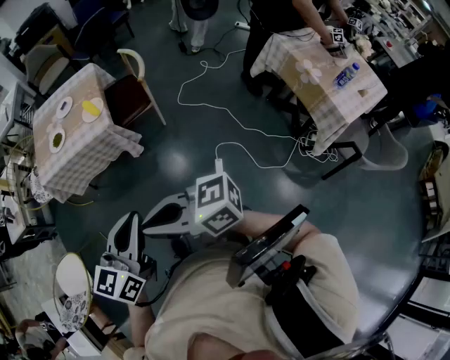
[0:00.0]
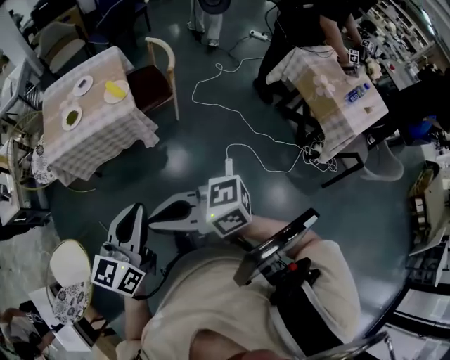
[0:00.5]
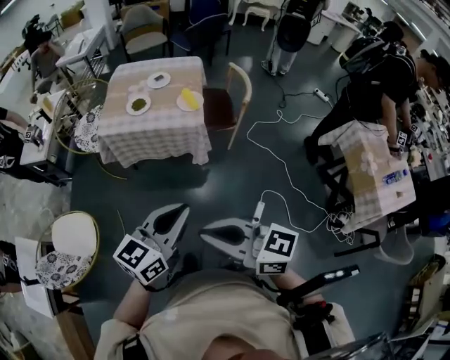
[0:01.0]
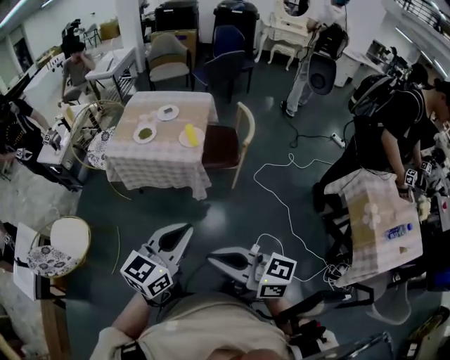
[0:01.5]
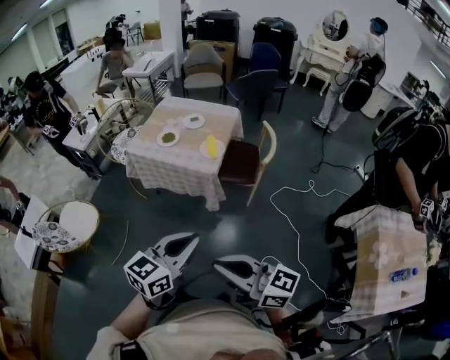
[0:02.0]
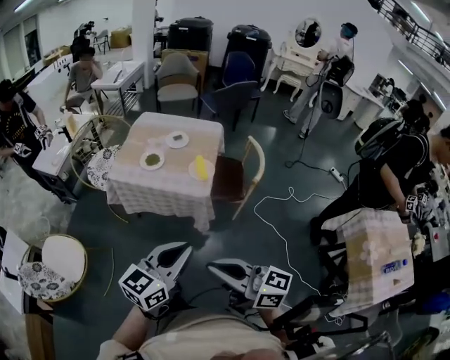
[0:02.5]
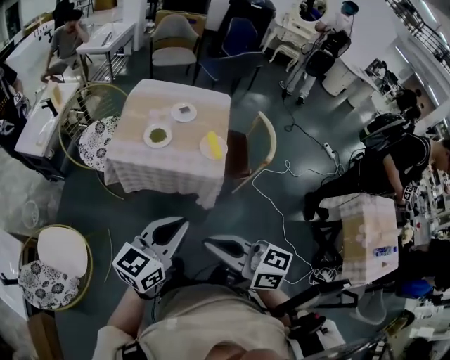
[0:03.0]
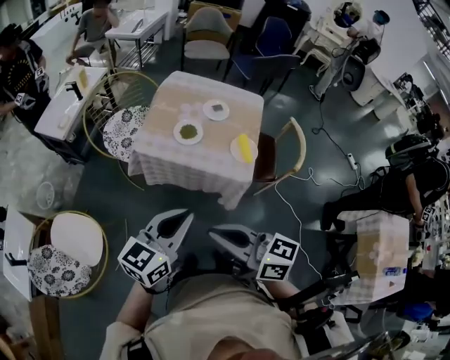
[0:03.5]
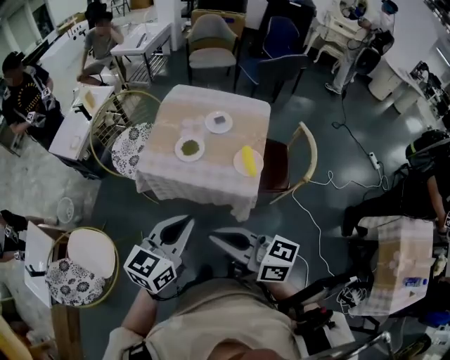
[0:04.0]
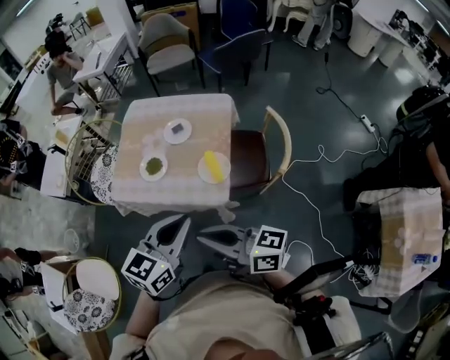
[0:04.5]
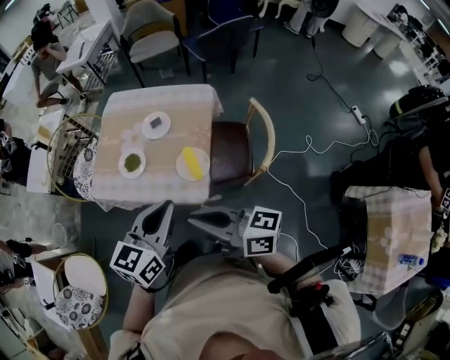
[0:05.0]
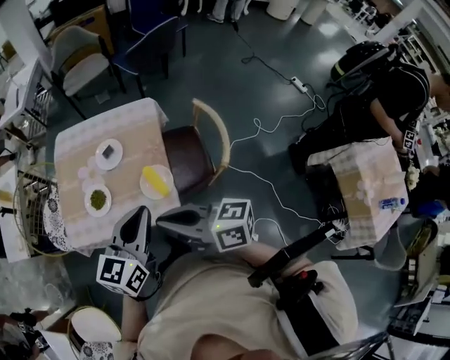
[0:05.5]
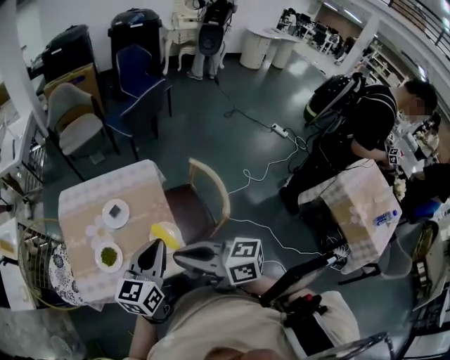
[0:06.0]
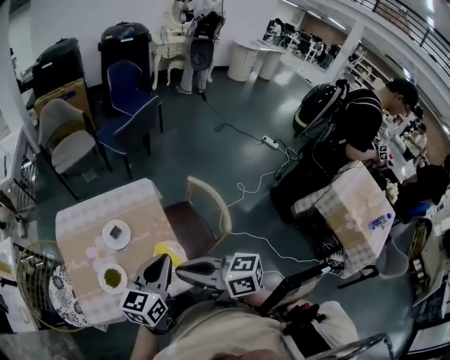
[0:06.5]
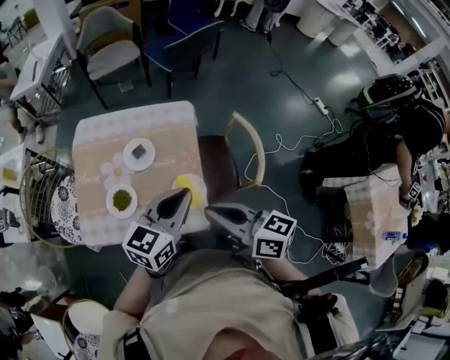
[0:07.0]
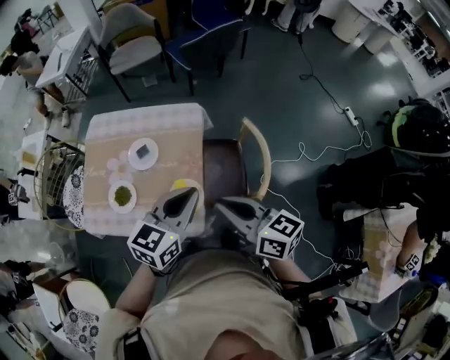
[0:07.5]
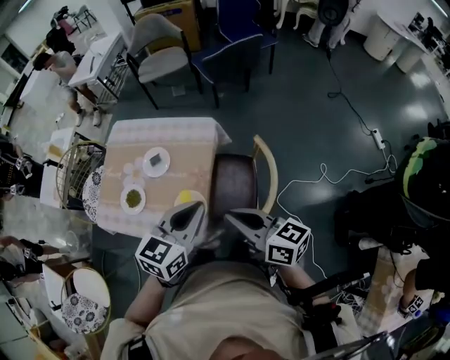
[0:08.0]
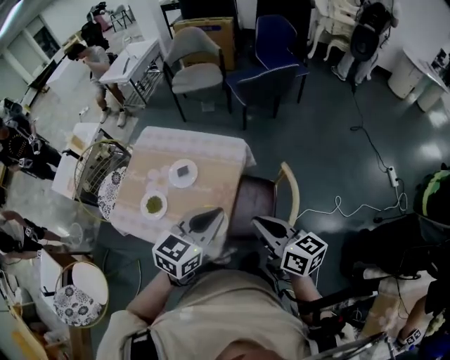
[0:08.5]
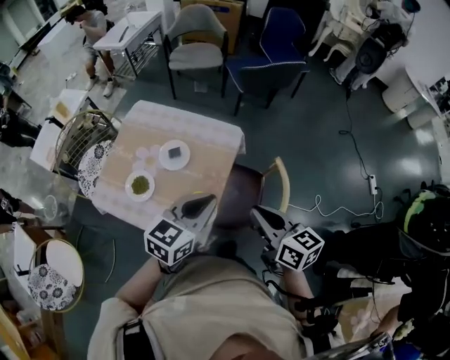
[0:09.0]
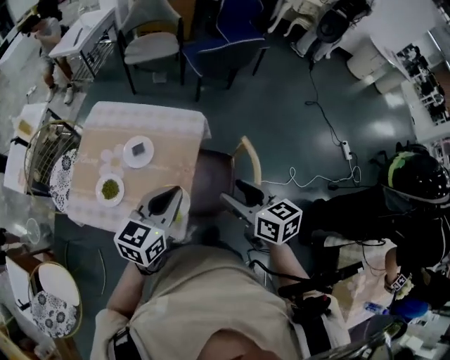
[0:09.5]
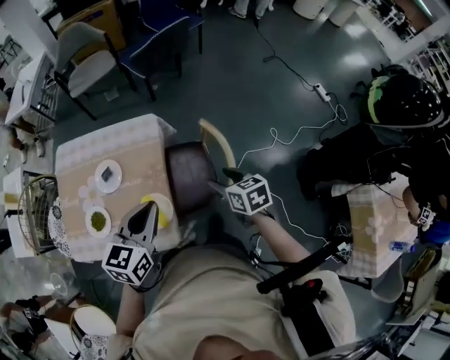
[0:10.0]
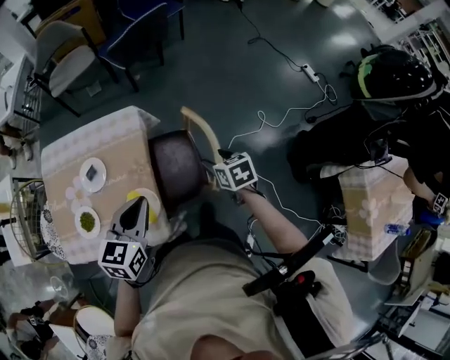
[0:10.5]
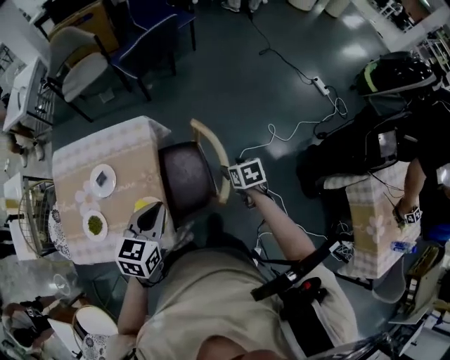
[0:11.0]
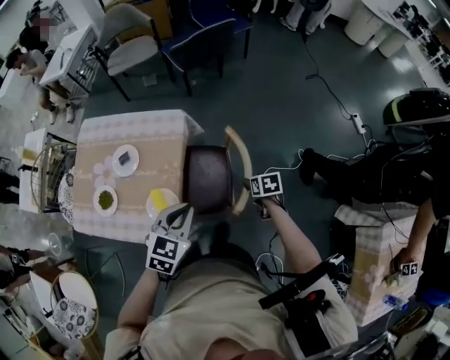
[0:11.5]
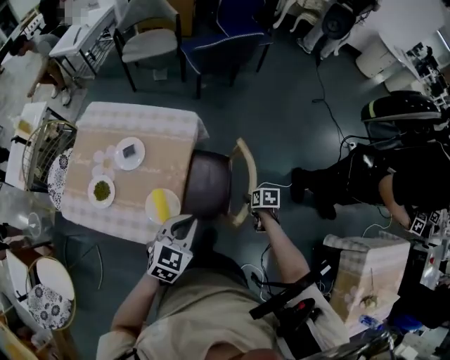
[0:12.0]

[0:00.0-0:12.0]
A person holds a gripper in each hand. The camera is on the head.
0:00.0 to 0:02.0: The left gripper moves forward, approximately 10 cm, and reaches some 15 cm to the left, then returns. The right gripper goes approximately 5 cm forward, and reaches some 15 cm to the left, then returns.
0:02.0 to 0:04.0: The two grippers go approximately 40 cm forward and to the left.
0:04.0 to 0:06.0: The right gripper moves forward and to the right, approximately 30 cm, and rotates approximately 20 degrees, while the left gripper shifts some 30 cm to the right and forward.
0:06.0 to 0:08.0: The grippers both shift to the right and forward by about 20 cm.
0:08.0 to 0:10.0: The right gripper travels downward, to the right and forward by approximately 20 cm, tips its fingers downward by about 40 degrees, and opens up.
0:10.0 to 0:12.0: The right gripper heads downward and to the right, covering some 25 cm, and changes its angle by about 30 degrees; the left gripper heads downward and to the right, covering approximately 10 cm.

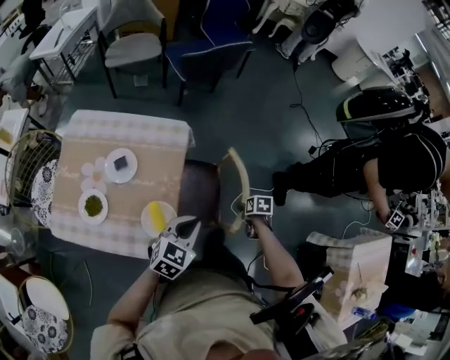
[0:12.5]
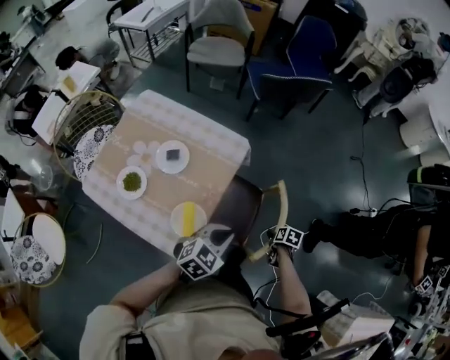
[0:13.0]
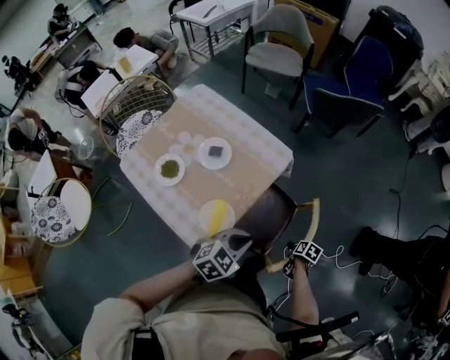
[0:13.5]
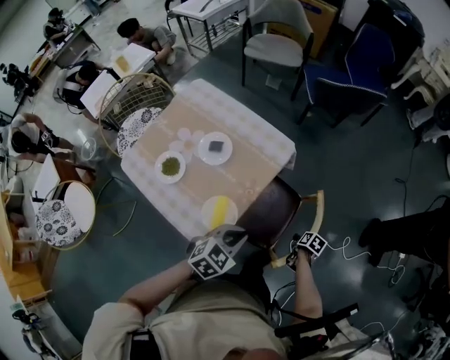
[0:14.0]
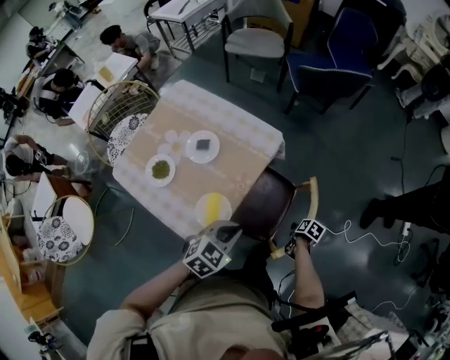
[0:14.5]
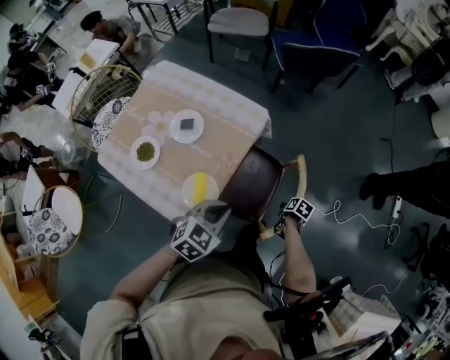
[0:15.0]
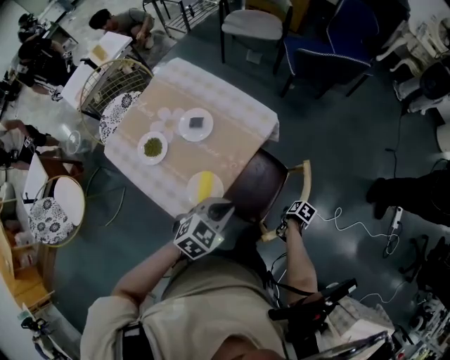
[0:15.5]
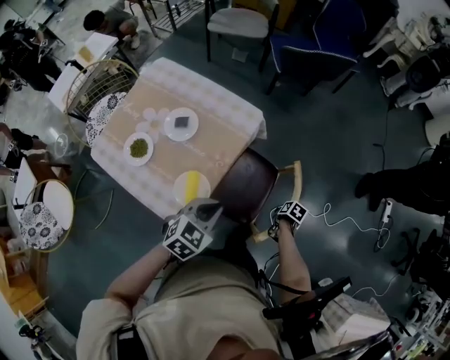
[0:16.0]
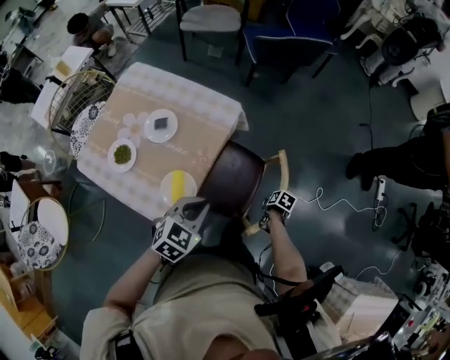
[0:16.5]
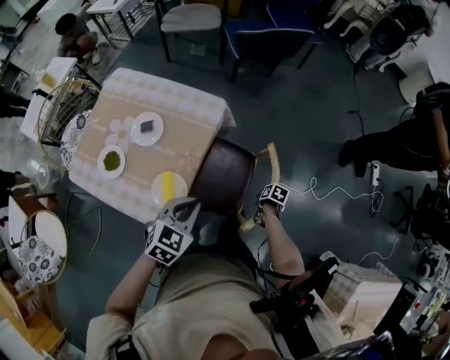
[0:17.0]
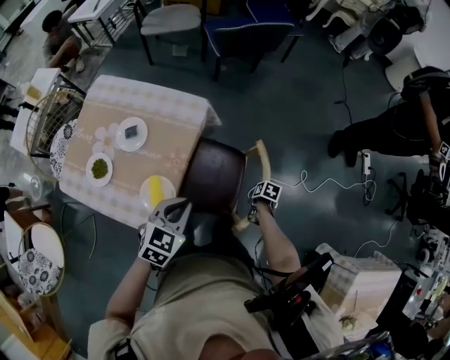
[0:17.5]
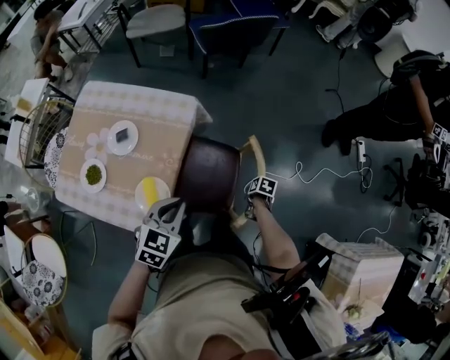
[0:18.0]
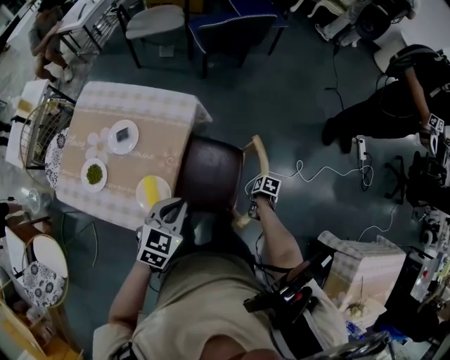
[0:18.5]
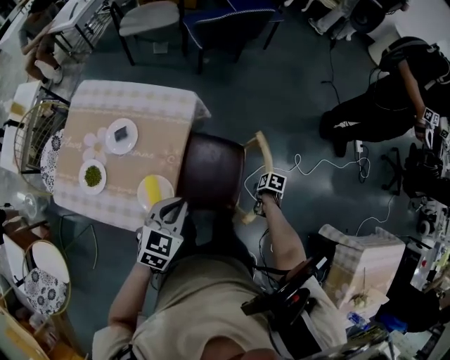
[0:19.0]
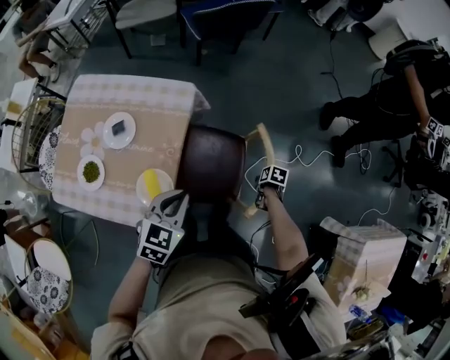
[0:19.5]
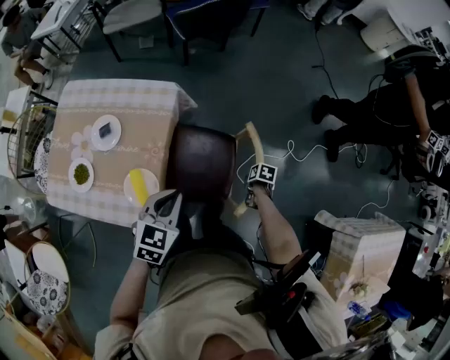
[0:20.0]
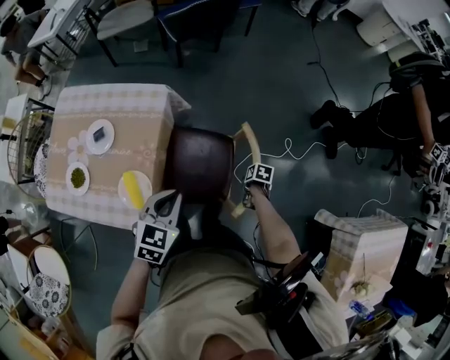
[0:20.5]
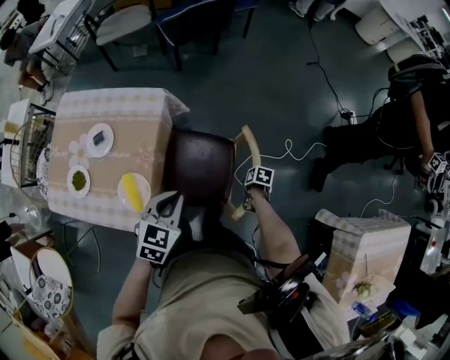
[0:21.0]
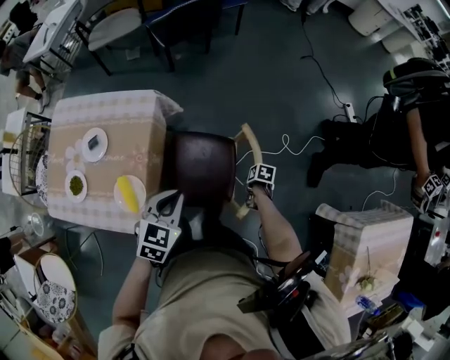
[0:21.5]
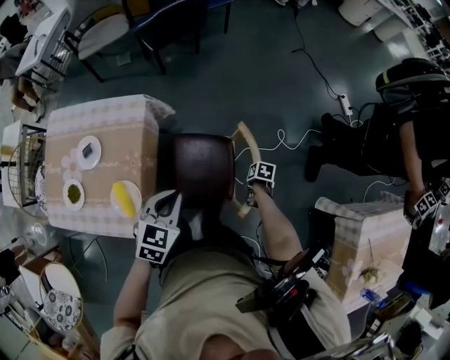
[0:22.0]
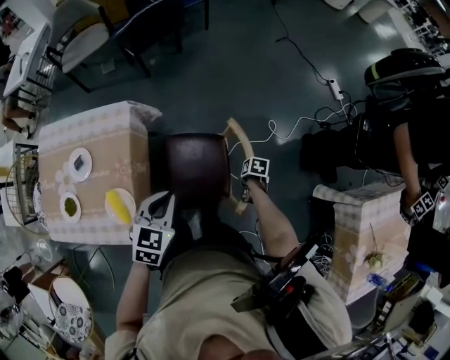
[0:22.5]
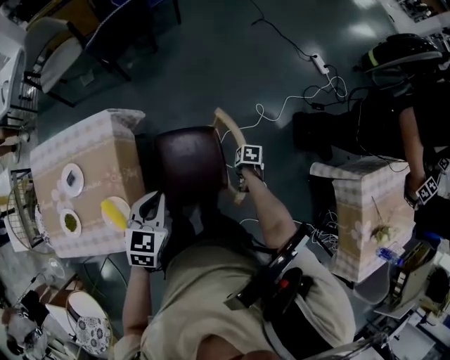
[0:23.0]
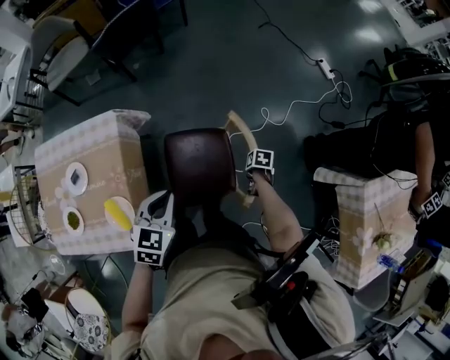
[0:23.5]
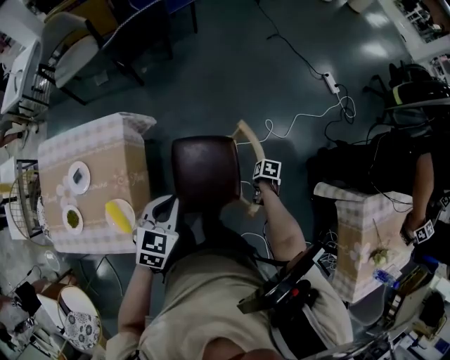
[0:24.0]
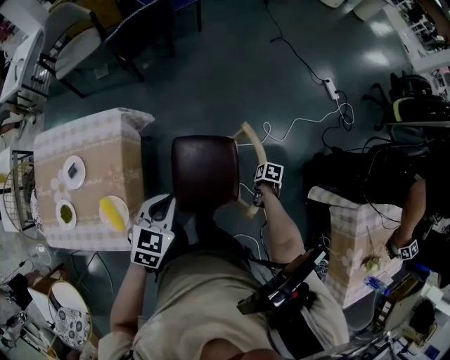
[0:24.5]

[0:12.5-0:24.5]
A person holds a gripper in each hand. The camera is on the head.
0:12.5 to 0:14.5: The right gripper is displaced downward by some 10 cm, and closes its fingers.
0:14.5 to 0:16.5: The grippers make only small movements.
0:16.5 to 0:18.5: There are only small adjustments of the grippers.
0:18.5 to 0:20.5: The right gripper changes place by about 5 cm, while the left gripper ends up roughly 5 cm from where it was.
0:20.5 to 0:22.5: The right gripper moves approximately 10 cm, while the left gripper ends up roughly 5 cm from where it was.
0:22.5 to 0:24.5: The right gripper changes place by approximately 10 cm.

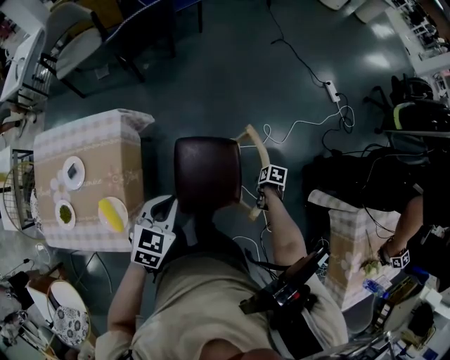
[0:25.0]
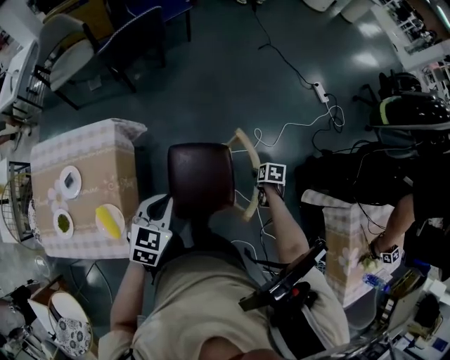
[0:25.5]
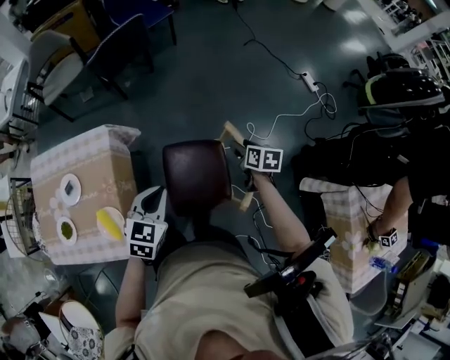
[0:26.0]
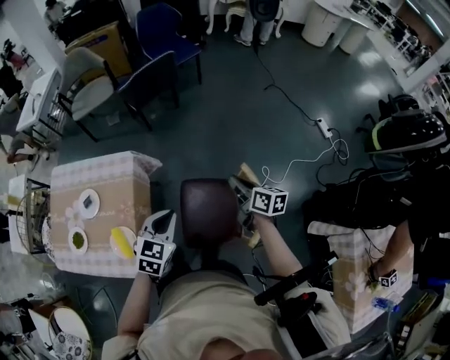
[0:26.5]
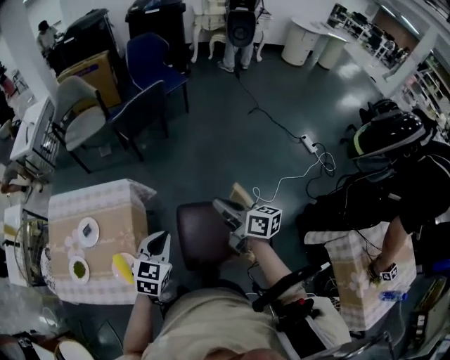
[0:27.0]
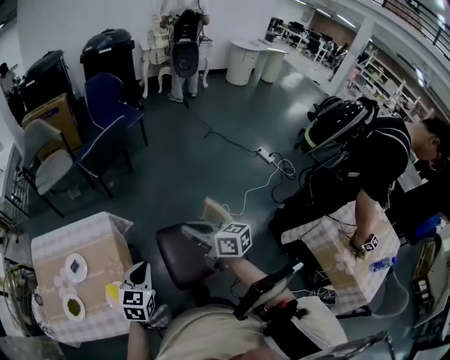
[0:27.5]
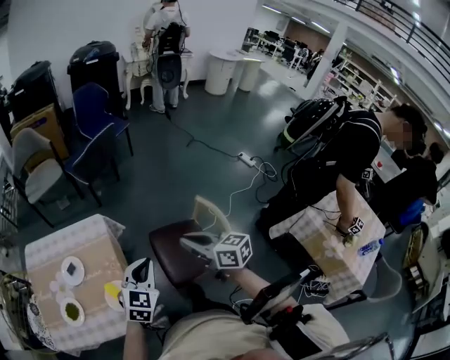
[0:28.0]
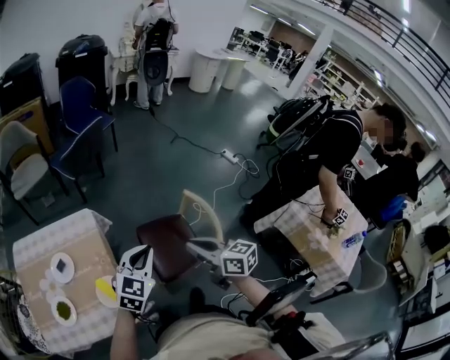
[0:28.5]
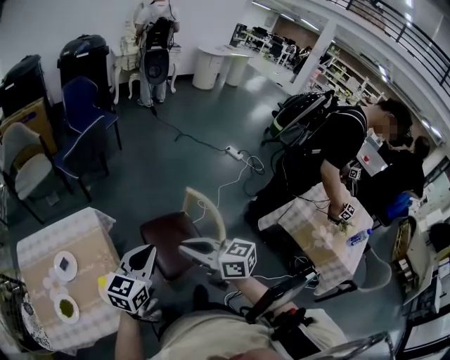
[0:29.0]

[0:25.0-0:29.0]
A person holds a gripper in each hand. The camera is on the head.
0:25.0 to 0:27.0: The right gripper is displaced upward by about 40 cm, tilts its fingers about 70 degrees upward, and closes. The left gripper goes approximately 5 cm upward.
0:27.0 to 0:29.0: The left gripper shifts some 15 cm backward and upward, and rotates roughly 30 degrees. The right gripper travels backward and to the left by about 25 cm.
